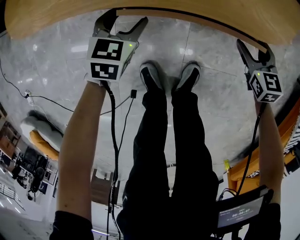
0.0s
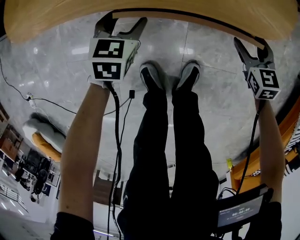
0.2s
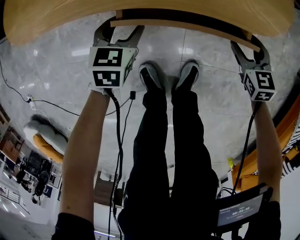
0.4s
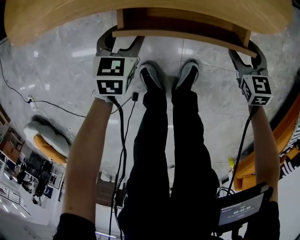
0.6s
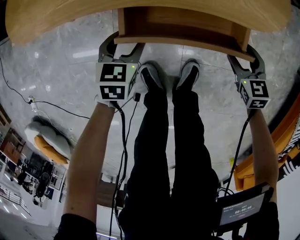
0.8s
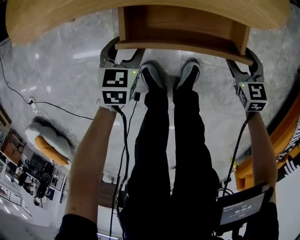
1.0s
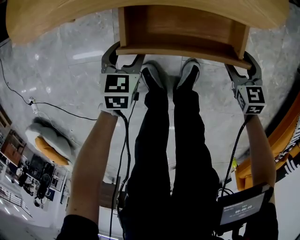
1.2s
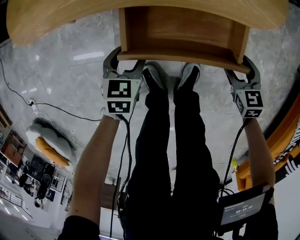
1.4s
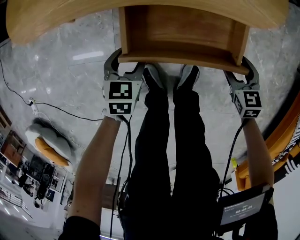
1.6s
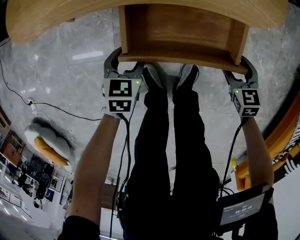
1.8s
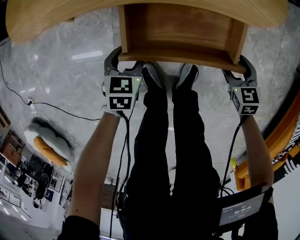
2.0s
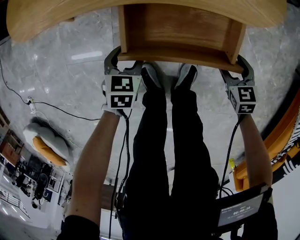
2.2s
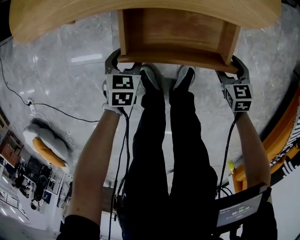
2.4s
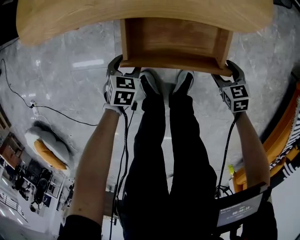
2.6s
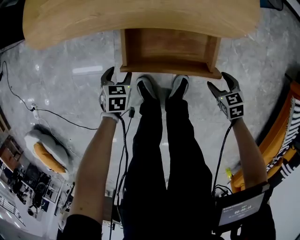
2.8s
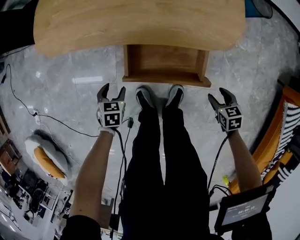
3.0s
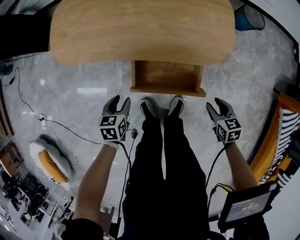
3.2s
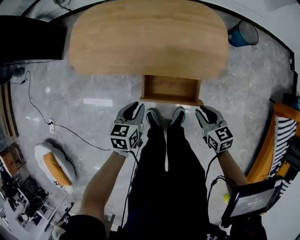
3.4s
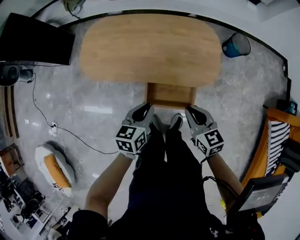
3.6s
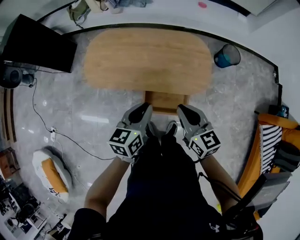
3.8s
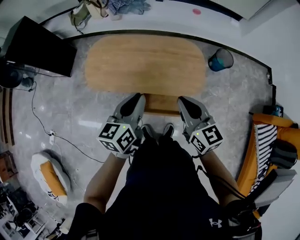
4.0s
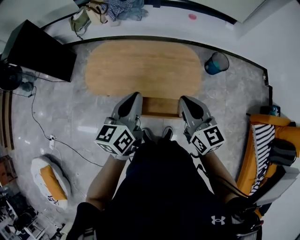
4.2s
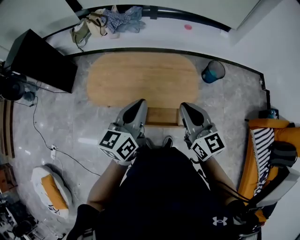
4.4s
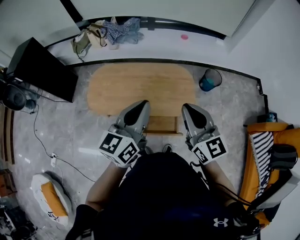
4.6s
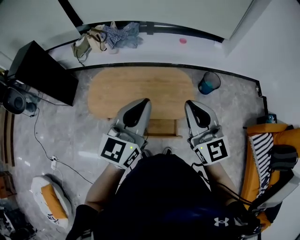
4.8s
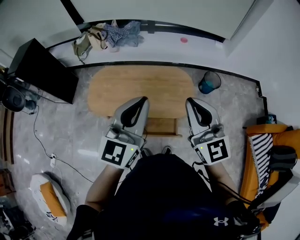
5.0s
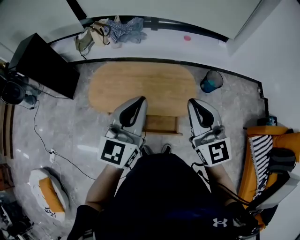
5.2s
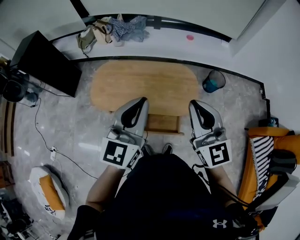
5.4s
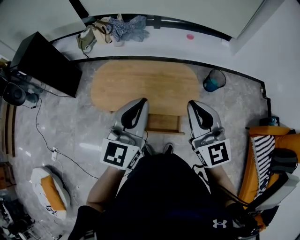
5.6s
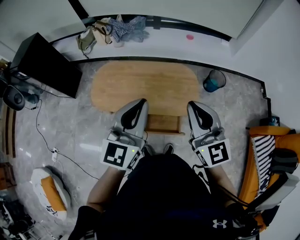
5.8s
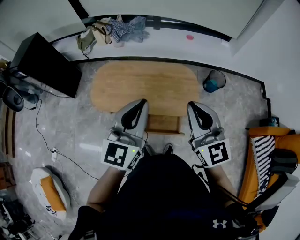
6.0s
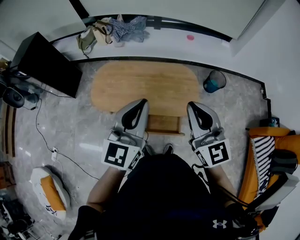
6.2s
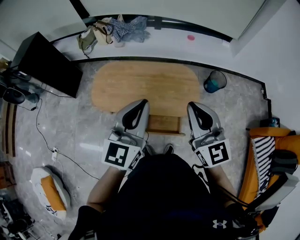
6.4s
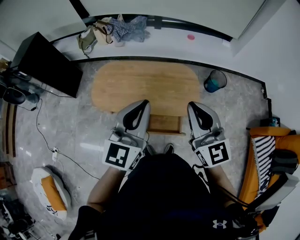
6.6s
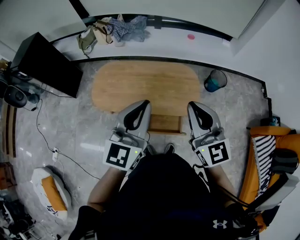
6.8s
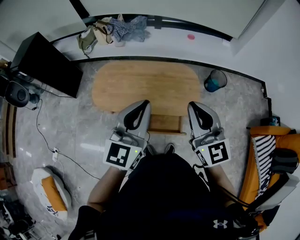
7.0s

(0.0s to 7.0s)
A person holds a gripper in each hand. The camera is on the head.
0.0s - 1.4s: The grippers both shift backward by approximately 10 cm.
1.4s - 2.8s: The right gripper is displaced backward by approximately 5 cm. The left gripper travels to the left by approximately 5 cm.
2.8s - 4.2s: The grippers both shift upward by about 70 cm. The right gripper points its fingers about 50 degrees further upward, and closes its fingers, while the left gripper angles its fingers upward, by approximately 60 degrees, and closes its fingers.
4.2s - 5.6s: Both grippers move upward, approximately 15 cm. The right gripper turns by about 20 degrees, while the left gripper changes its angle by approximately 30 degrees.
5.6s - 7.0s: Both grippers stay put.

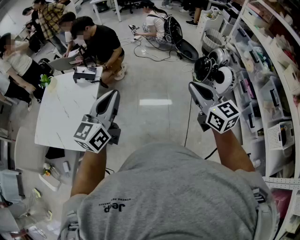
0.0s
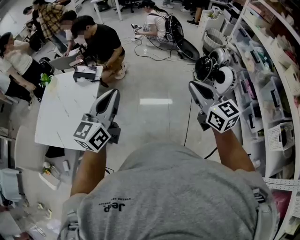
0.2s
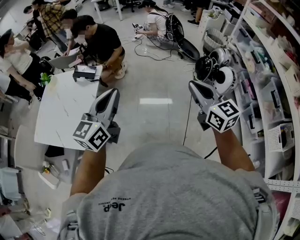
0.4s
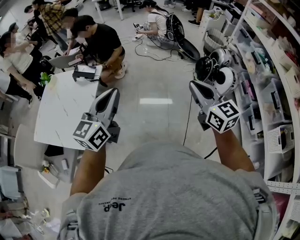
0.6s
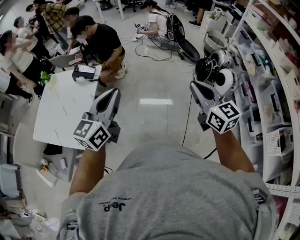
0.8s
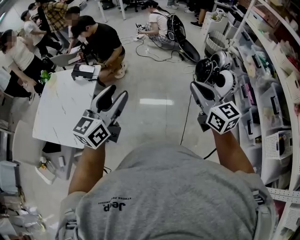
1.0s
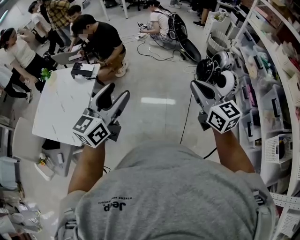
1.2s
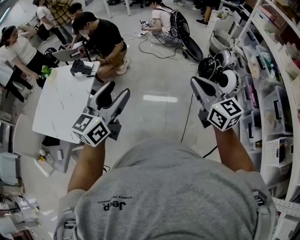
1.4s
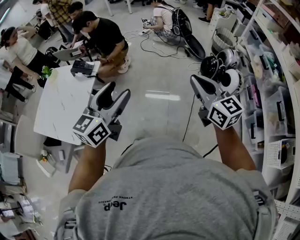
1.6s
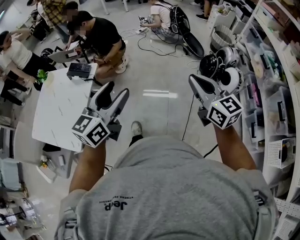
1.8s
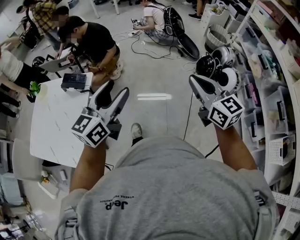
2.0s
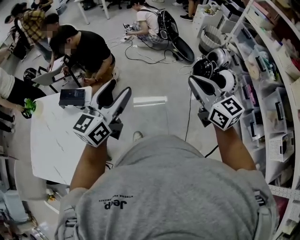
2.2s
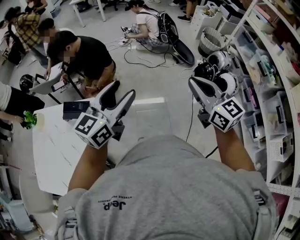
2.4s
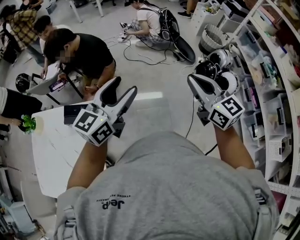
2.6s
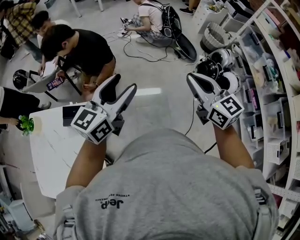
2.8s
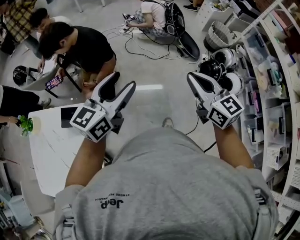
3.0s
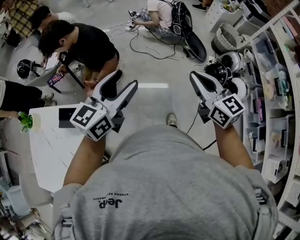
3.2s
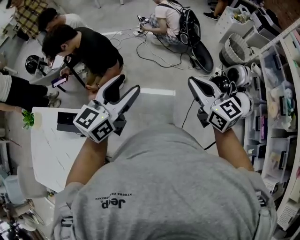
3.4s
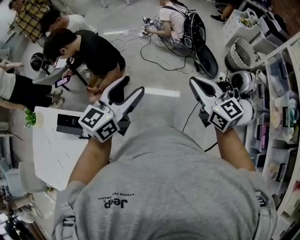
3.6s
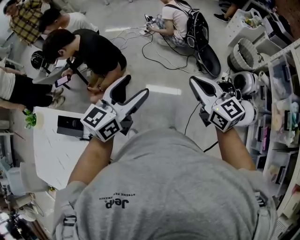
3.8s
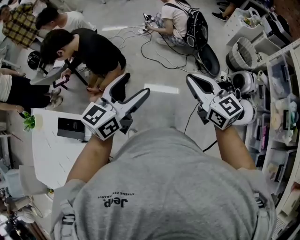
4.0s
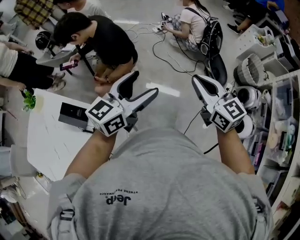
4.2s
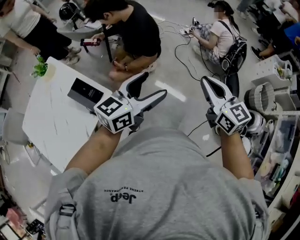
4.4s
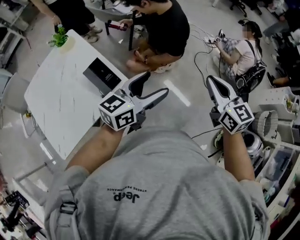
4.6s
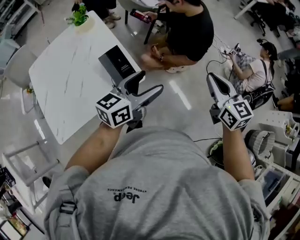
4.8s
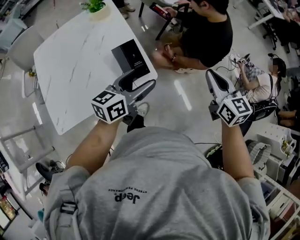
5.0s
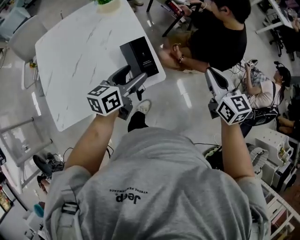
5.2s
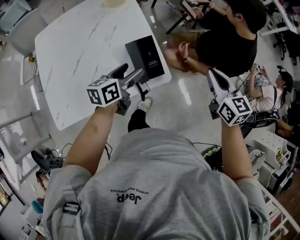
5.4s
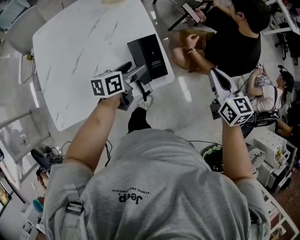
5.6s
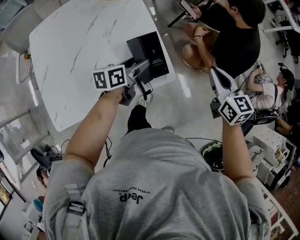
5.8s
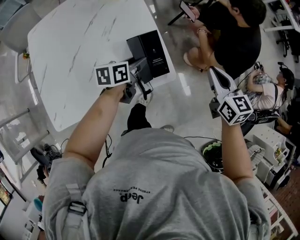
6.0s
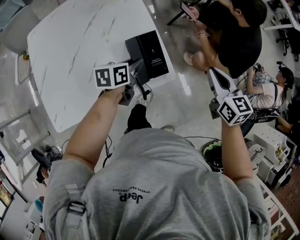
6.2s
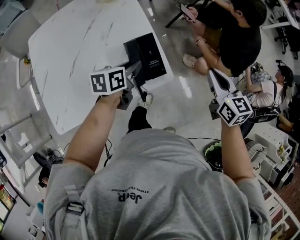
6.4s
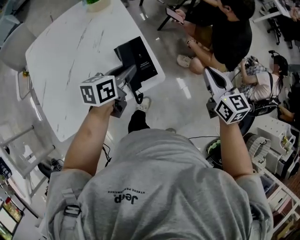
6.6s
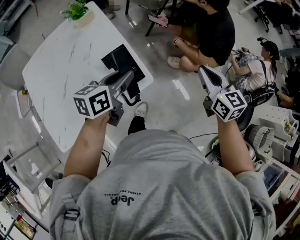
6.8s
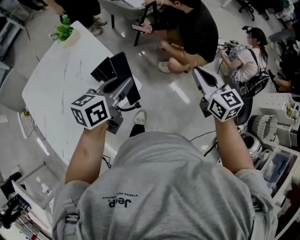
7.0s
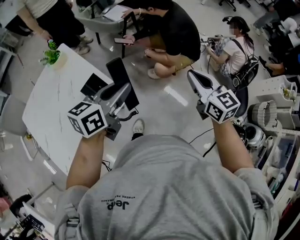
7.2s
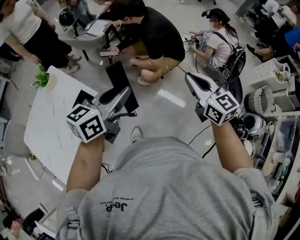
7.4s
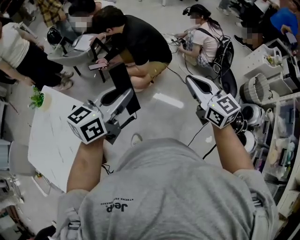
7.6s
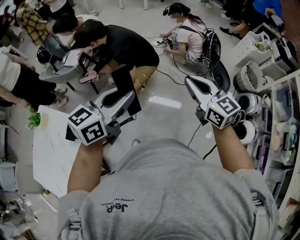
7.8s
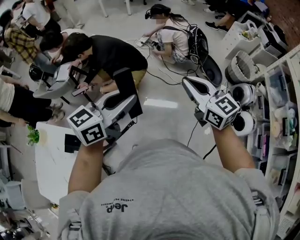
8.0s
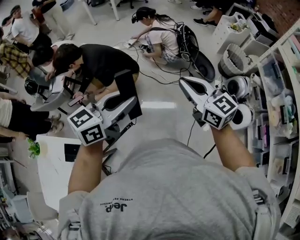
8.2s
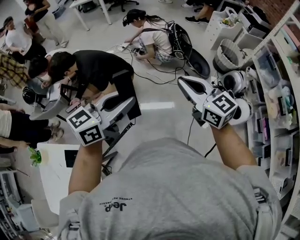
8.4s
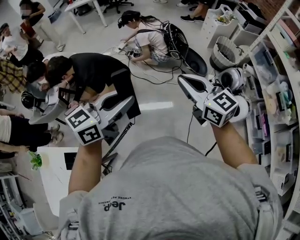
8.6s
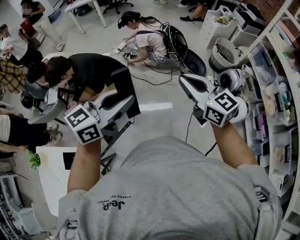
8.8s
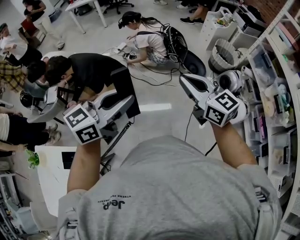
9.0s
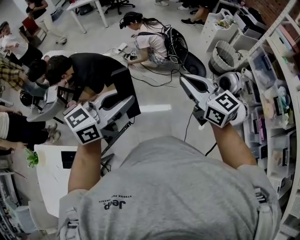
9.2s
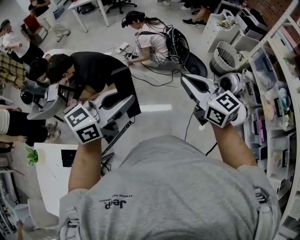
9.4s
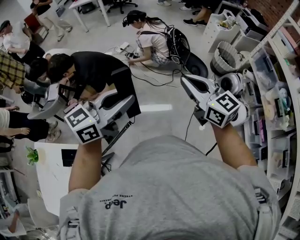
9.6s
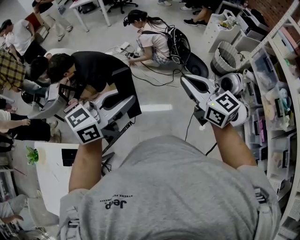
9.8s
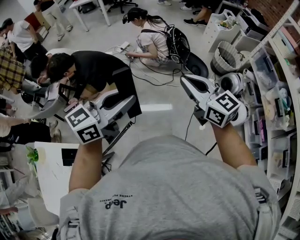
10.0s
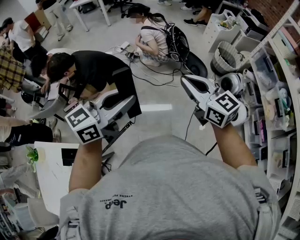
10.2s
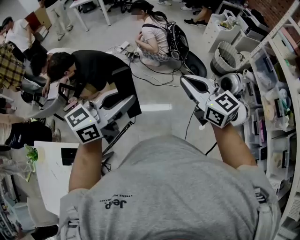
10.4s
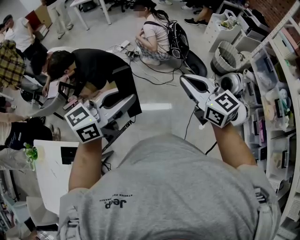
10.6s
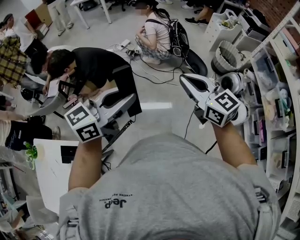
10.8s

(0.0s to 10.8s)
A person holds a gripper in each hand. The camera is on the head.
0.0s - 1.6s: The right gripper moves to the right and forward, about 10 cm, while the left gripper is displaced to the right by approximately 10 cm, and opens its fingers.
1.6s - 3.0s: The pair of grippers is taken forward and to the left, roughly 50 cm.
3.0s - 4.6s: The left gripper changes place by approximately 15 cm, and changes its angle by roughly 40 degrees. Meanwhile the right gripper shifts by roughly 30 cm, and changes its angle by approximately 40 degrees.
4.6s - 6.2s: The right gripper ends up about 35 cm from where it was, and swivels roughly 20 degrees. The left gripper ends up some 40 cm from where it was, angles its fingers downward, by about 30 degrees, and closes up.
6.2s - 7.8s: Both grippers are carried about 40 cm. The left gripper turns by roughly 70 degrees; the right gripper turns by approximately 40 degrees.
7.8s - 9.2s: Both grippers travel together to the right, some 15 cm. The left gripper changes its angle by about 30 degrees.
9.2s - 10.8s: Both grippers stay about where they are.

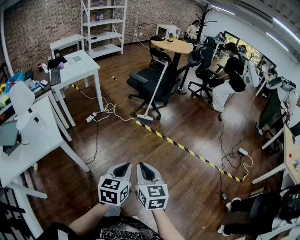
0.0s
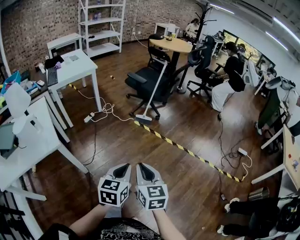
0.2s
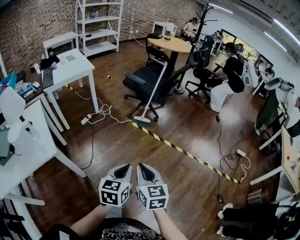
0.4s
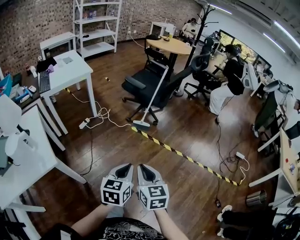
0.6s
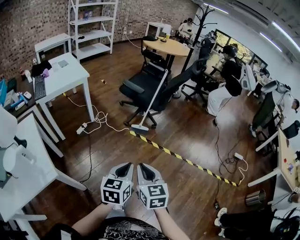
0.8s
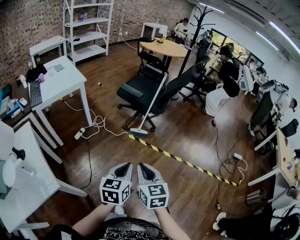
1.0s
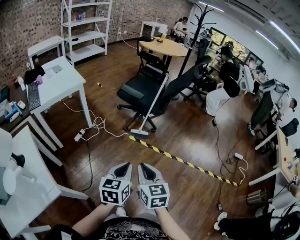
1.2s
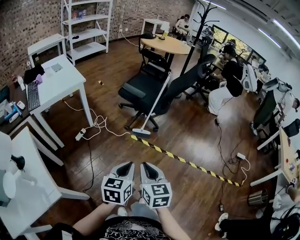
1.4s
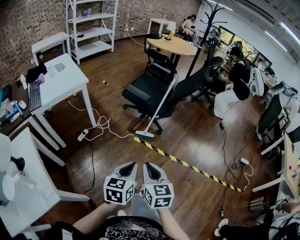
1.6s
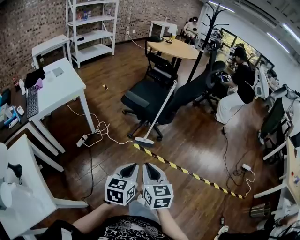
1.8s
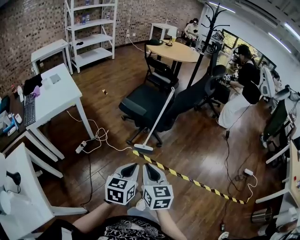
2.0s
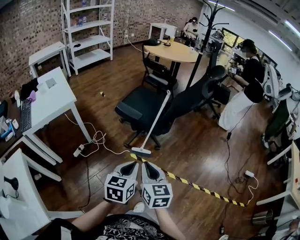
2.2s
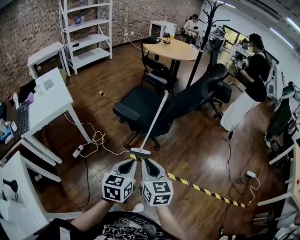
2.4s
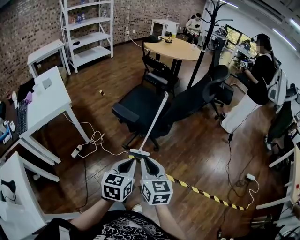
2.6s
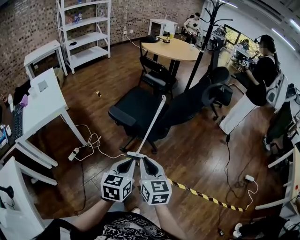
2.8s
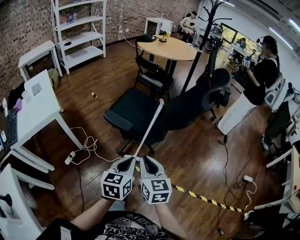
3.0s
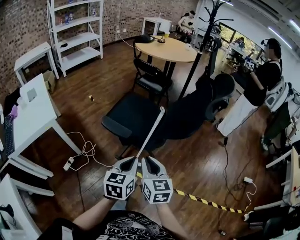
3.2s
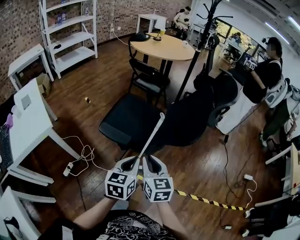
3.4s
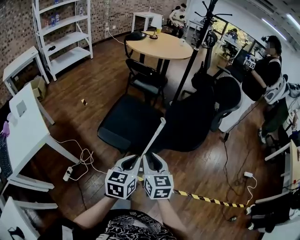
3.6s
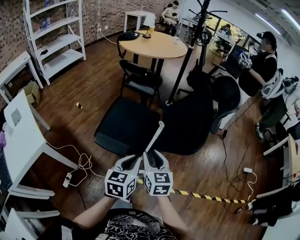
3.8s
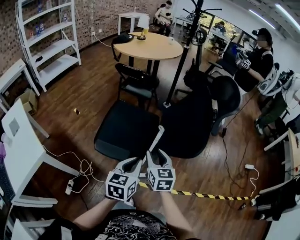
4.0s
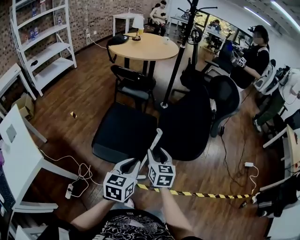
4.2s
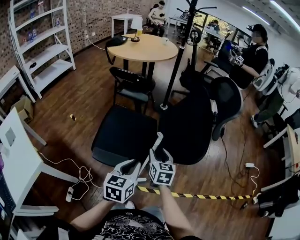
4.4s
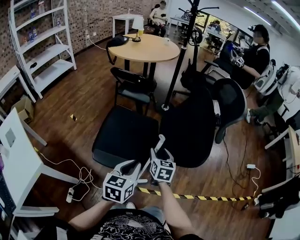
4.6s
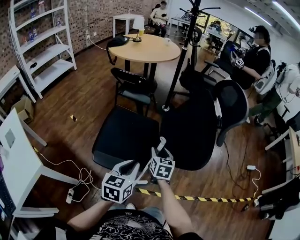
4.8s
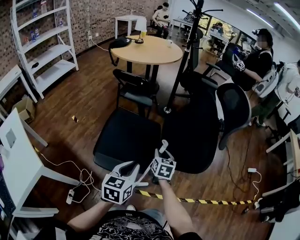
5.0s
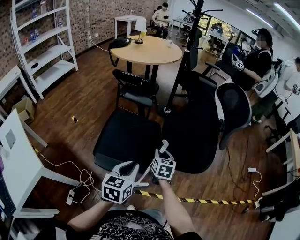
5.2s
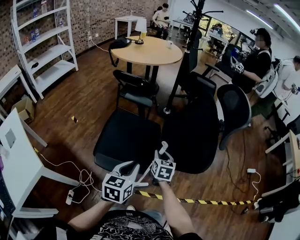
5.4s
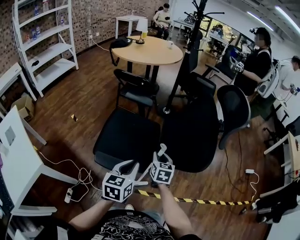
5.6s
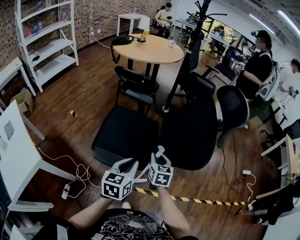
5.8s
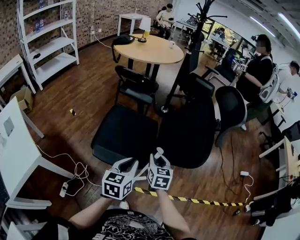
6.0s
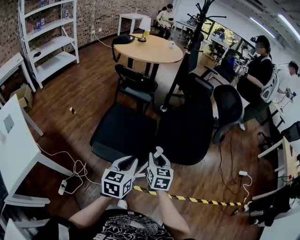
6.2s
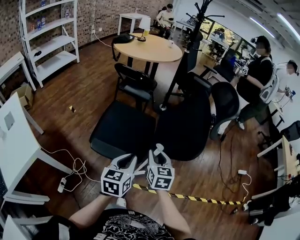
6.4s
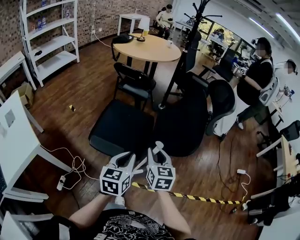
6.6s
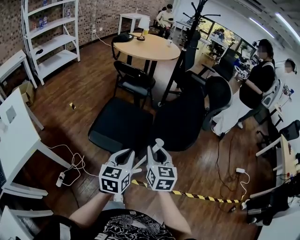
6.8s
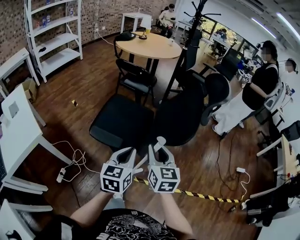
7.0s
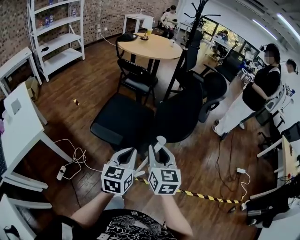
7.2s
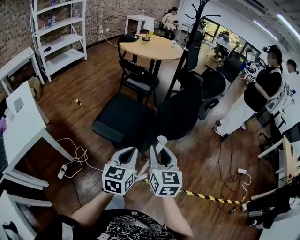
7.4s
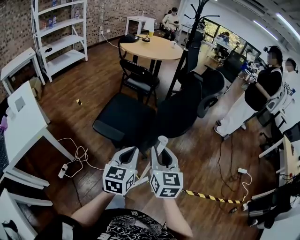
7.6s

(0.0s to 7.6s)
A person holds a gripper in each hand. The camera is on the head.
0.0s - 1.6s: The two grippers go roughly 35 cm forward.
1.6s - 3.0s: Both grippers move forward, roughly 35 cm.
3.0s - 4.6s: Both grippers travel together forward, about 30 cm. The left gripper turns by approximately 20 degrees, while the right gripper swivels approximately 30 degrees, and opens its fingers.
4.6s - 6.0s: The right gripper closes up.
6.0s - 7.6s: The left gripper goes approximately 20 cm backward, to the right and upward. The right gripper moves backward and upward, about 25 cm, and swivels roughly 20 degrees.
